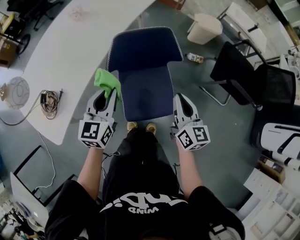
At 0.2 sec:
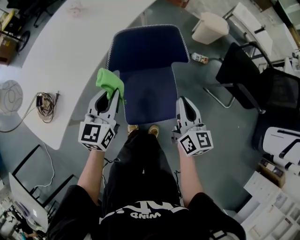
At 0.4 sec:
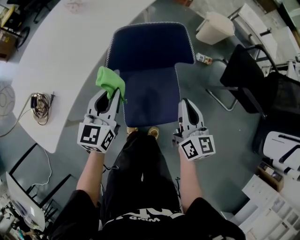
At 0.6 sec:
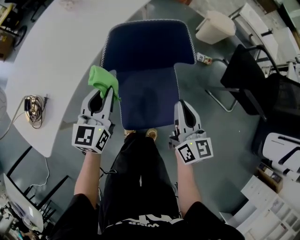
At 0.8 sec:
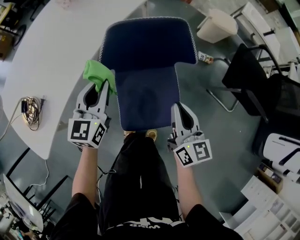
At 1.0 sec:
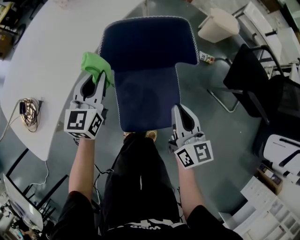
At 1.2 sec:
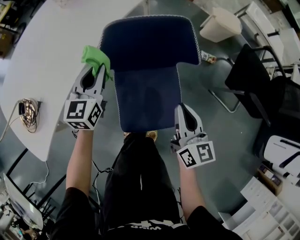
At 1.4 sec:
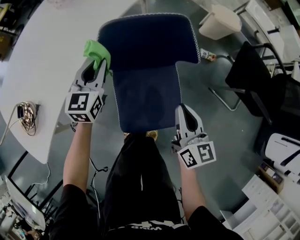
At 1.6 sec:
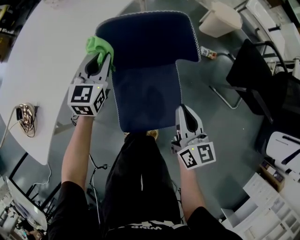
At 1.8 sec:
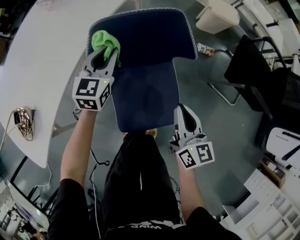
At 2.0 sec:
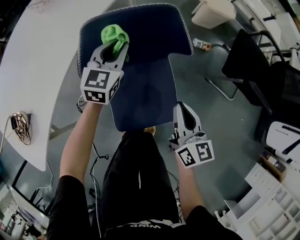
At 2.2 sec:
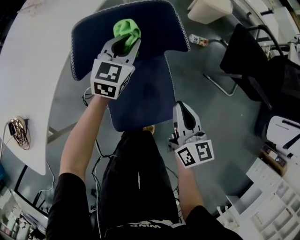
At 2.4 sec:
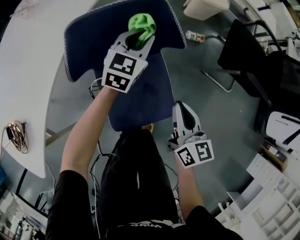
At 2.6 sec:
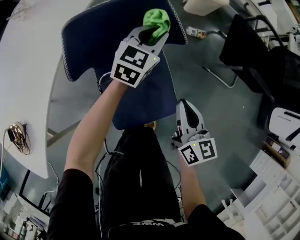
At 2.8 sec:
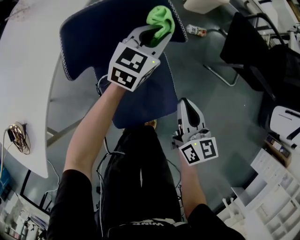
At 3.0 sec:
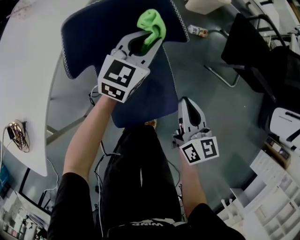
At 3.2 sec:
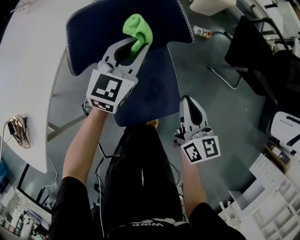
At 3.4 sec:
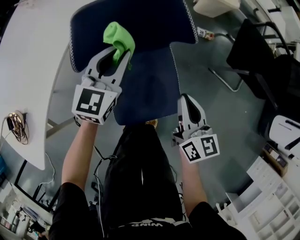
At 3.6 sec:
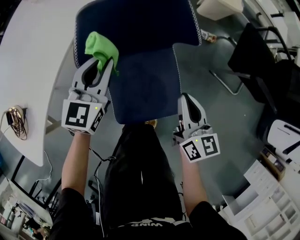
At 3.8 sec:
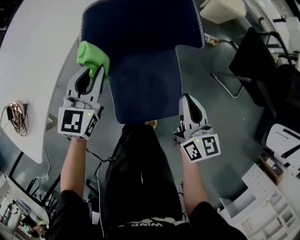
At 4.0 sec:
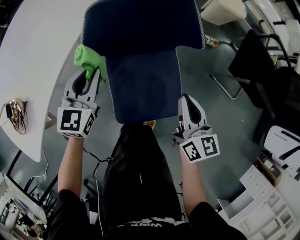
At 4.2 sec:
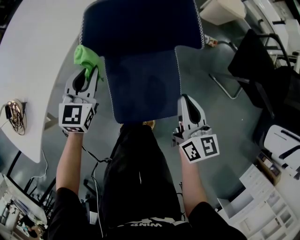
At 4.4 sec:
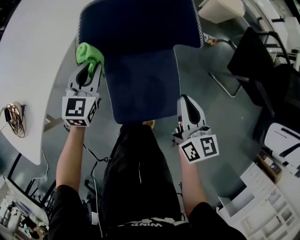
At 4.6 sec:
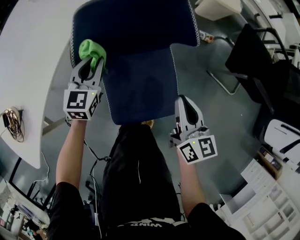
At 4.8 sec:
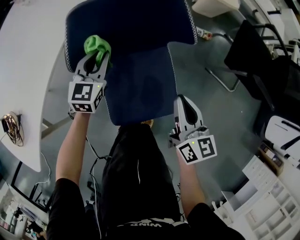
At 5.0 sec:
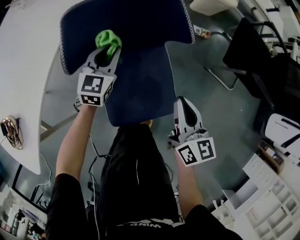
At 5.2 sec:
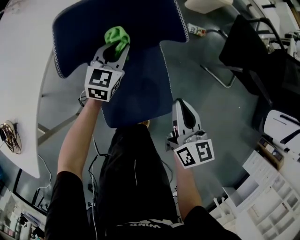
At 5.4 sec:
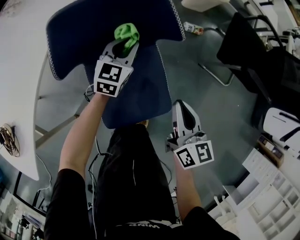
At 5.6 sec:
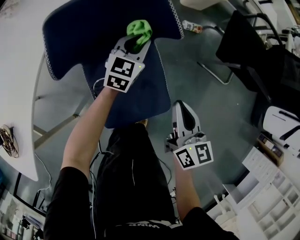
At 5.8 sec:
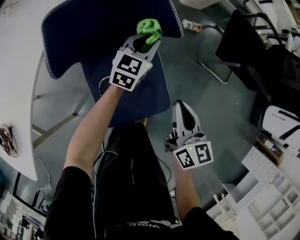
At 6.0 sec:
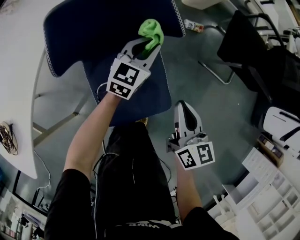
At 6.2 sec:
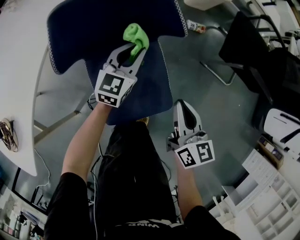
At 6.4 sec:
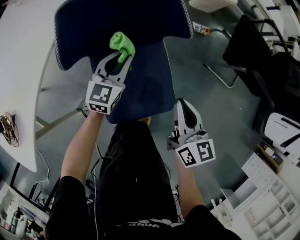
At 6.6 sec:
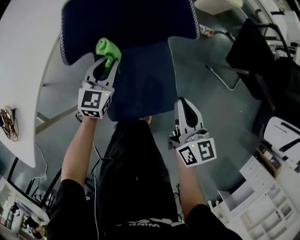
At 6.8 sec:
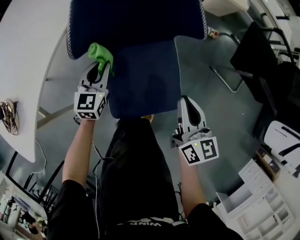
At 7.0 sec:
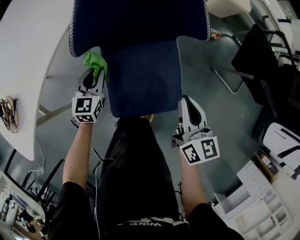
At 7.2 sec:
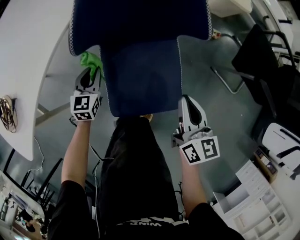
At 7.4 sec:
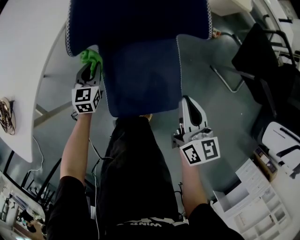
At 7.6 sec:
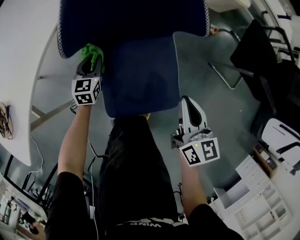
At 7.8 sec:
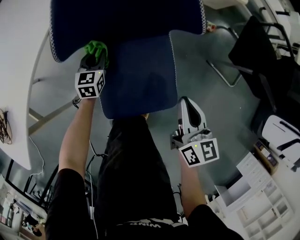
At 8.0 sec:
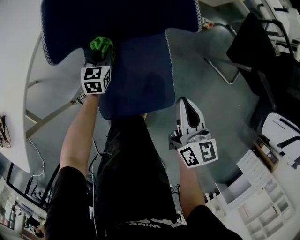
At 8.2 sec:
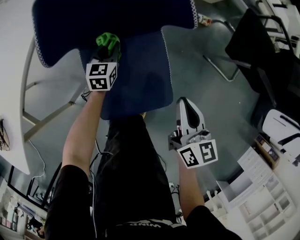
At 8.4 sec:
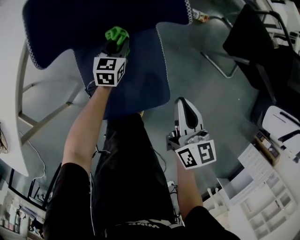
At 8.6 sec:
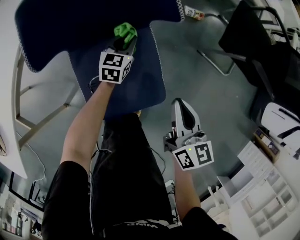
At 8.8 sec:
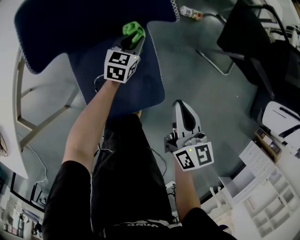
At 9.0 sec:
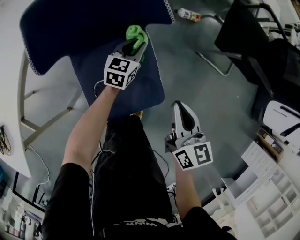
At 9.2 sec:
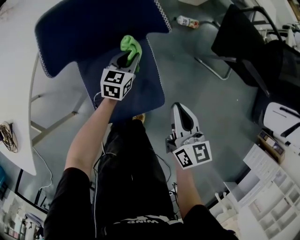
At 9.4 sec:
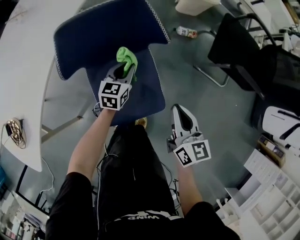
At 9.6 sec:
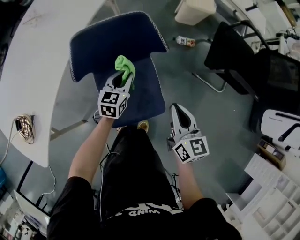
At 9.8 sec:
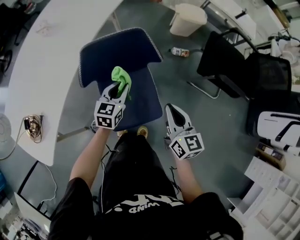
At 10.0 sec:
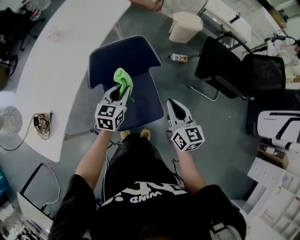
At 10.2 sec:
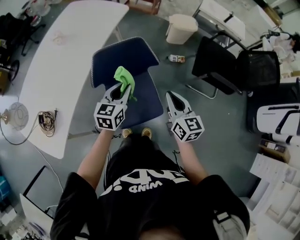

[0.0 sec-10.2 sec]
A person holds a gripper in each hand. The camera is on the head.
0.0 sec to 1.4 sec: The right gripper heads downward and forward, covering some 15 cm. Meanwhile the left gripper is displaced forward and downward by approximately 20 cm.
1.4 sec to 3.0 sec: The right gripper heads to the right, covering about 5 cm. Meanwhile the left gripper shifts some 25 cm to the right, and changes its angle by roughly 30 degrees.
3.0 sec to 4.4 sec: The left gripper heads to the left, covering roughly 25 cm, and changes its angle by approximately 30 degrees.
4.4 sec to 5.8 sec: The right gripper moves roughly 5 cm; the left gripper shifts about 30 cm to the right and forward, and turns by approximately 30 degrees.
5.8 sec to 7.2 sec: The left gripper heads to the left and backward, covering approximately 35 cm, and rotates some 30 degrees.
7.2 sec to 8.8 sec: The right gripper goes about 5 cm to the right, while the left gripper heads to the right, covering approximately 30 cm, and changes its angle by approximately 30 degrees.
8.8 sec to 10.2 sec: The right gripper travels upward by some 25 cm. The left gripper is displaced upward and backward by about 40 cm.

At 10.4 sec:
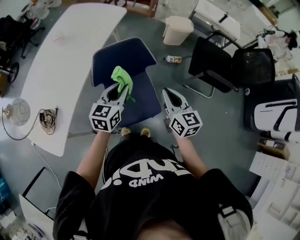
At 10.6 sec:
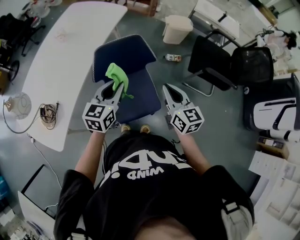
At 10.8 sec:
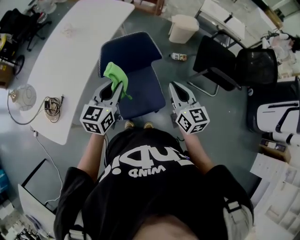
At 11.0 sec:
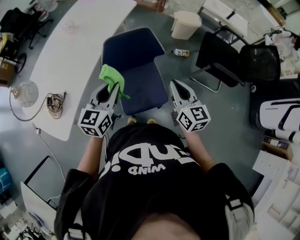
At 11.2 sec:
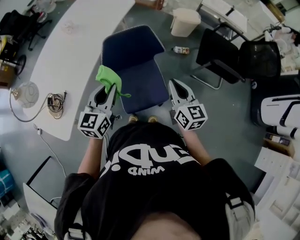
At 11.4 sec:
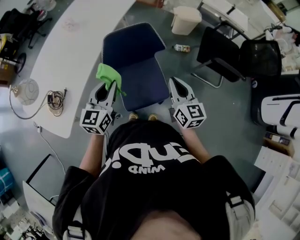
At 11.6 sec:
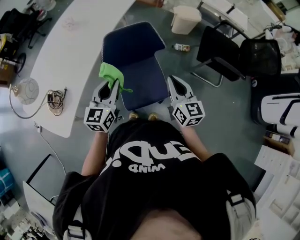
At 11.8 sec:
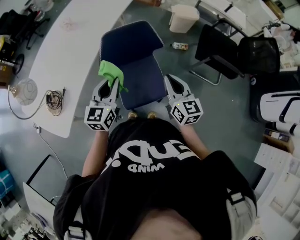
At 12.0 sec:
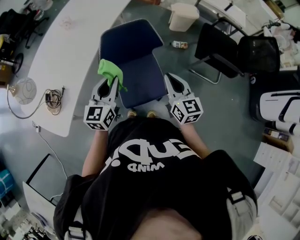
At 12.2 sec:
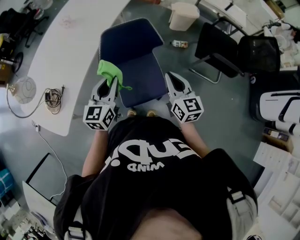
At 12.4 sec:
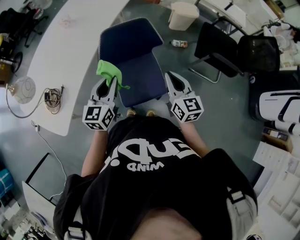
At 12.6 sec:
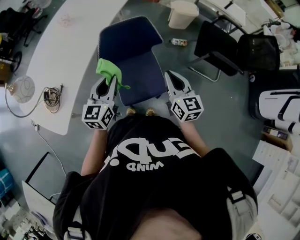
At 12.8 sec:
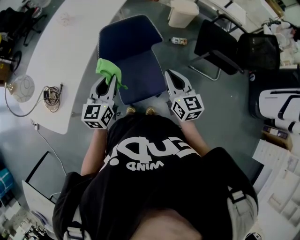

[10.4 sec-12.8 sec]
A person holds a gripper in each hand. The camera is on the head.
10.4 sec to 11.6 sec: The left gripper is displaced backward and to the left by about 10 cm. Meanwhile the right gripper shifts by approximately 5 cm.
11.6 sec to 12.8 sec: Neither gripper changes place.

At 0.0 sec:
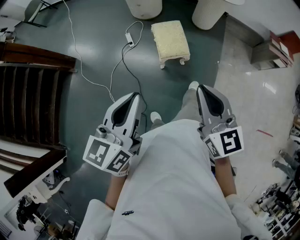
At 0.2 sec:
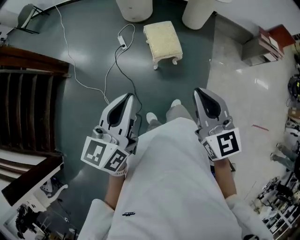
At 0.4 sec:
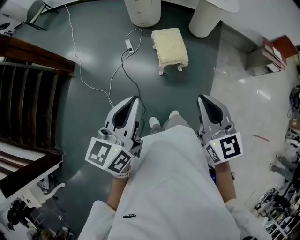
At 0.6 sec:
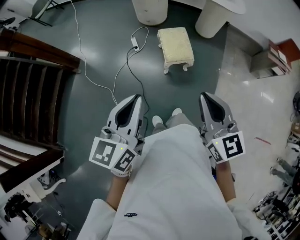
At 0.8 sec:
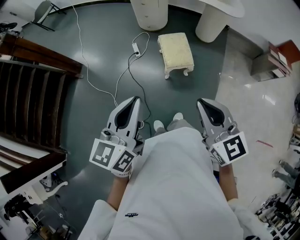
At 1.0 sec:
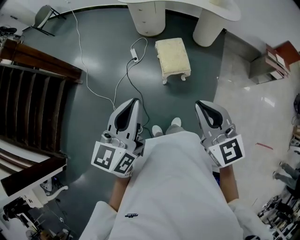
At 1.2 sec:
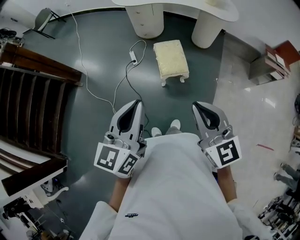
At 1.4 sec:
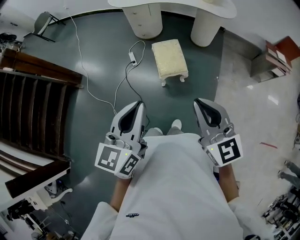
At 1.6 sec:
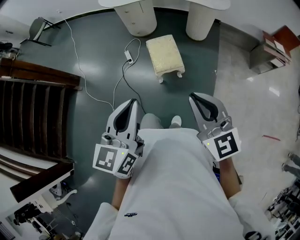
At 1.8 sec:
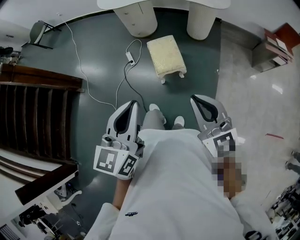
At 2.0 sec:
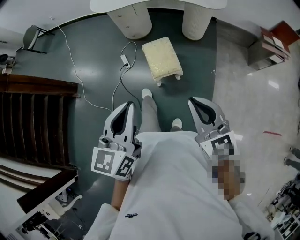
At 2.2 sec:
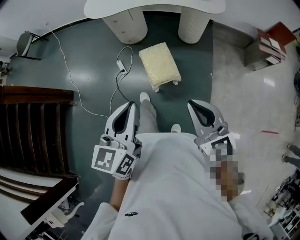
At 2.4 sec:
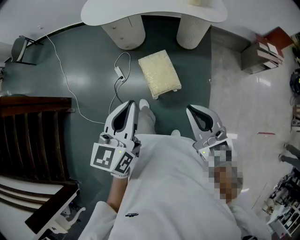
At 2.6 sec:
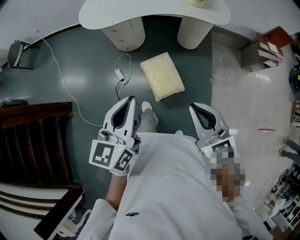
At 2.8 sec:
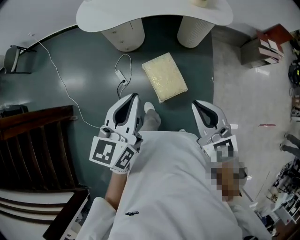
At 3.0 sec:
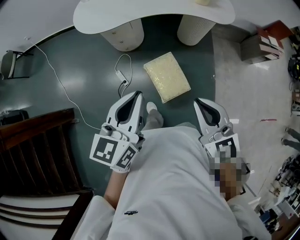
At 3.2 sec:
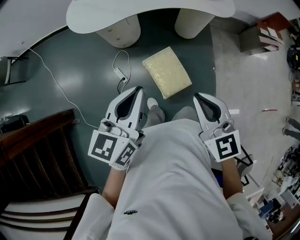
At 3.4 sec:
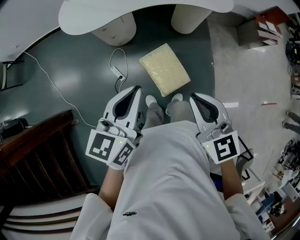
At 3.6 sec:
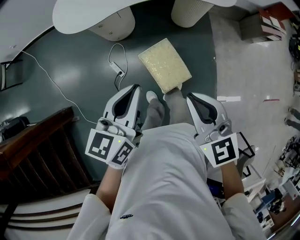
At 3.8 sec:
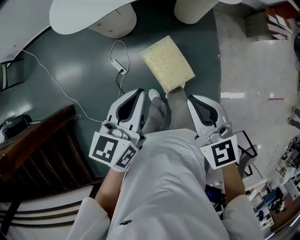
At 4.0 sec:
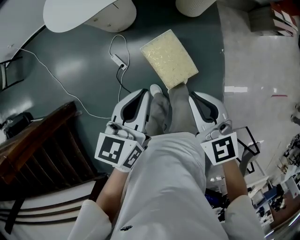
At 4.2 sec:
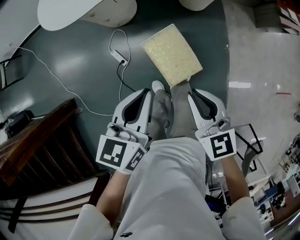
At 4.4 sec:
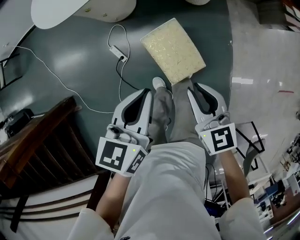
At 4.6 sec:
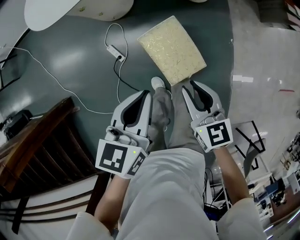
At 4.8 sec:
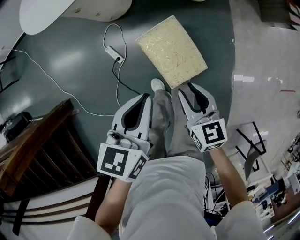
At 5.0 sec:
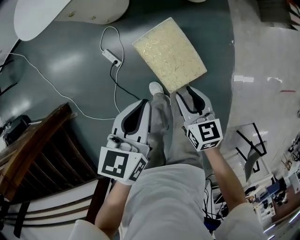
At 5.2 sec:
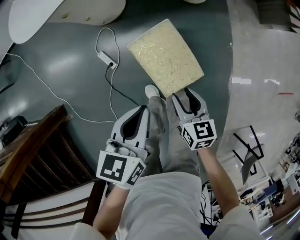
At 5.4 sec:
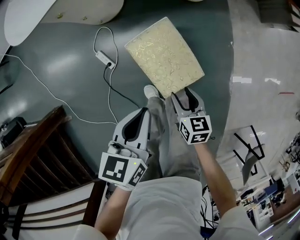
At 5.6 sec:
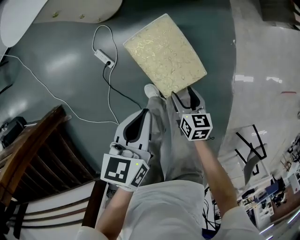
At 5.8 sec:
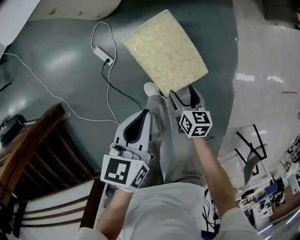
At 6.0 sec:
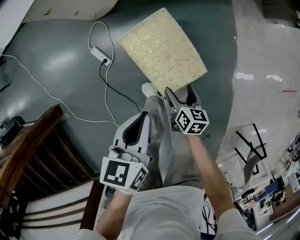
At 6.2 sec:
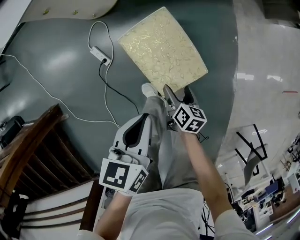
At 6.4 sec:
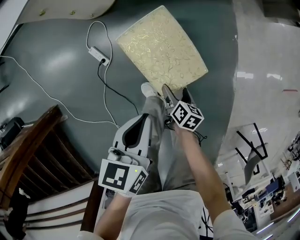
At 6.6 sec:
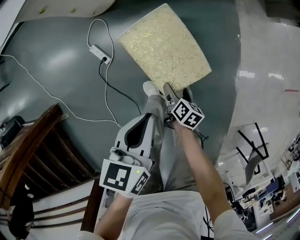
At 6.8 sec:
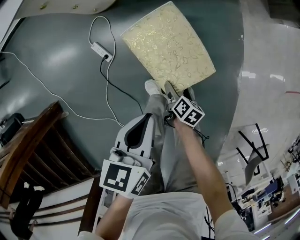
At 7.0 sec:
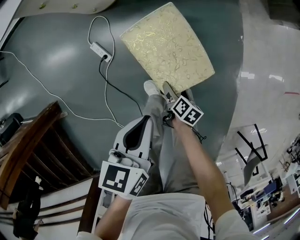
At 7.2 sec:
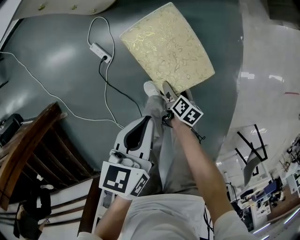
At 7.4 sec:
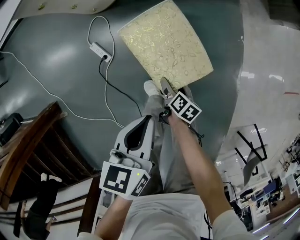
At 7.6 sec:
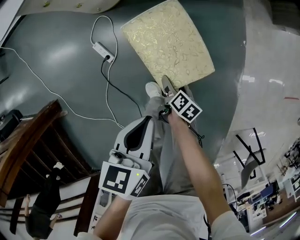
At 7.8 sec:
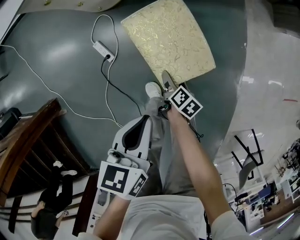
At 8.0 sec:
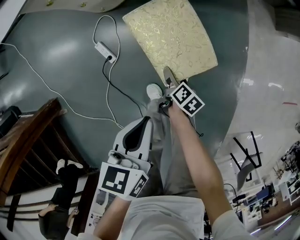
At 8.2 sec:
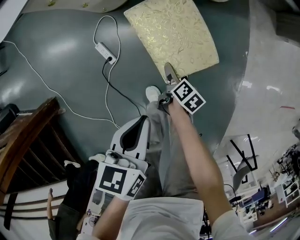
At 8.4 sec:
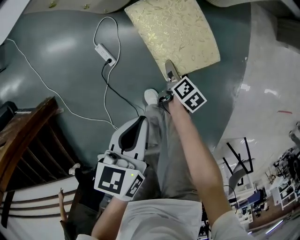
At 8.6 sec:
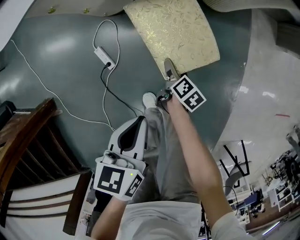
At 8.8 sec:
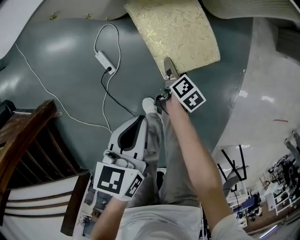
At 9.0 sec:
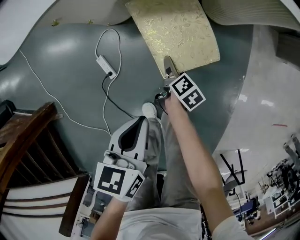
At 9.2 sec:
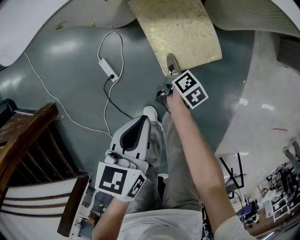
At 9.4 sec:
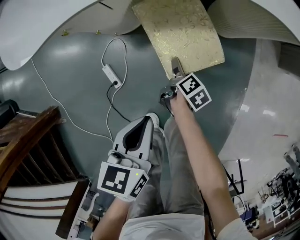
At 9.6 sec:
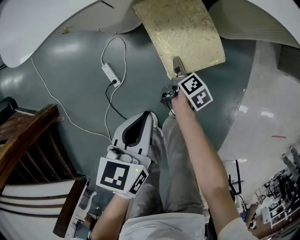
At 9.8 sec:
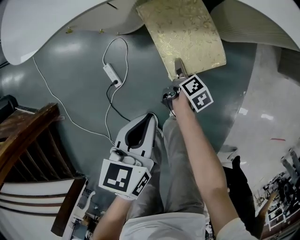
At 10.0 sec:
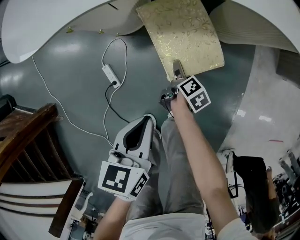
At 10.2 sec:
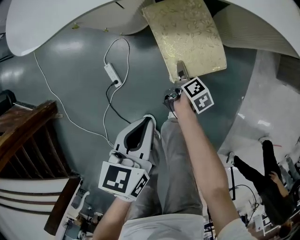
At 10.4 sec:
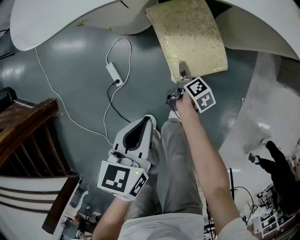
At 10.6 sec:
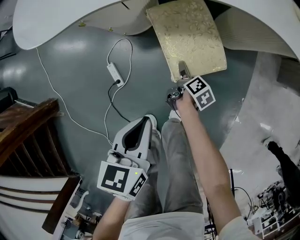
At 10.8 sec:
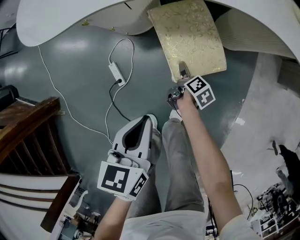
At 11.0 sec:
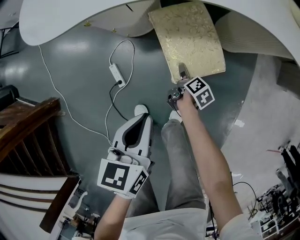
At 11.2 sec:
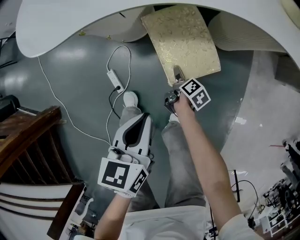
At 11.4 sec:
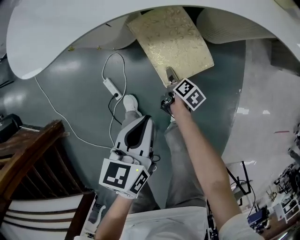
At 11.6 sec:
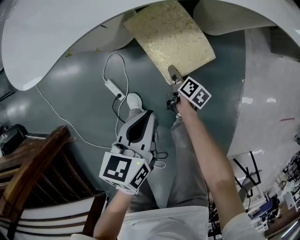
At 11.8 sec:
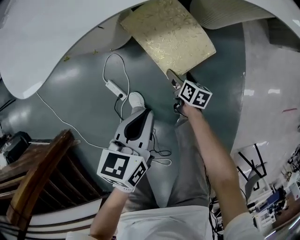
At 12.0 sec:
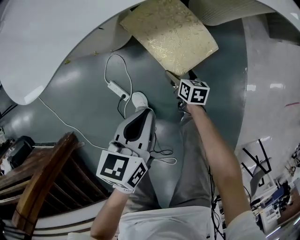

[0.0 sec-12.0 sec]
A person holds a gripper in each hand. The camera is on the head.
0.0 sec to 1.6 sec: The left gripper moves to the right, approximately 5 cm.
1.6 sec to 3.0 sec: The grippers both shift forward by about 35 cm. The left gripper turns by roughly 20 degrees.
3.0 sec to 4.4 sec: The two grippers go some 20 cm downward. The left gripper rotates approximately 20 degrees.
4.4 sec to 6.0 sec: The right gripper heads downward, covering some 35 cm, rotates approximately 40 degrees, and opens; the left gripper shifts about 20 cm downward.
6.0 sec to 7.6 sec: The right gripper shifts about 10 cm downward, and swivels some 30 degrees.
7.6 sec to 9.0 sec: The right gripper moves forward, about 25 cm. Meanwhile the left gripper is displaced forward by roughly 15 cm.
9.0 sec to 10.4 sec: The right gripper shifts by about 5 cm.
10.4 sec to 12.0 sec: The right gripper rotates about 30 degrees. The left gripper turns by some 20 degrees.
